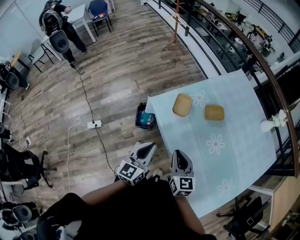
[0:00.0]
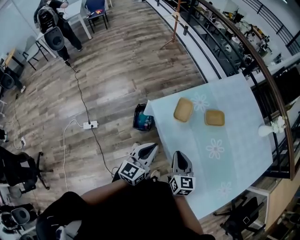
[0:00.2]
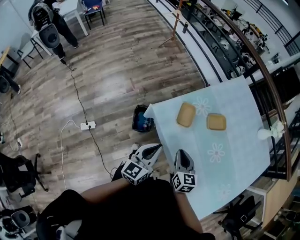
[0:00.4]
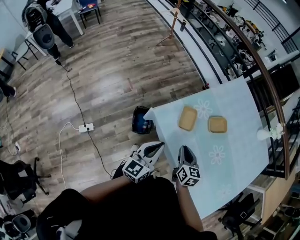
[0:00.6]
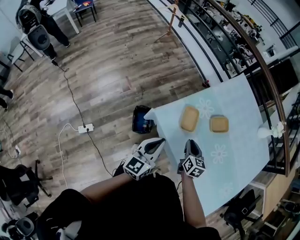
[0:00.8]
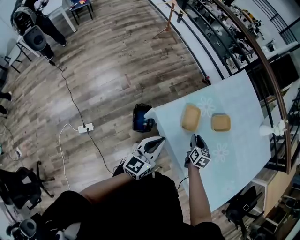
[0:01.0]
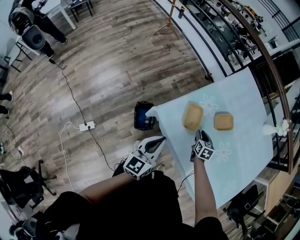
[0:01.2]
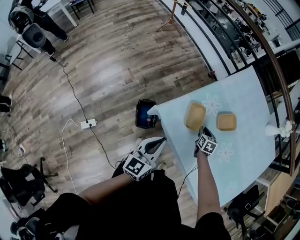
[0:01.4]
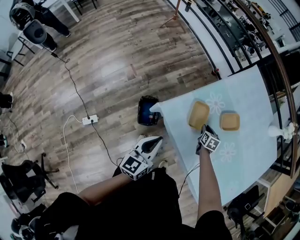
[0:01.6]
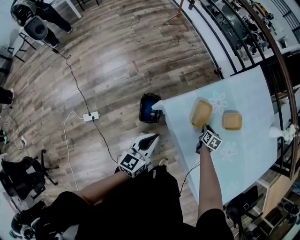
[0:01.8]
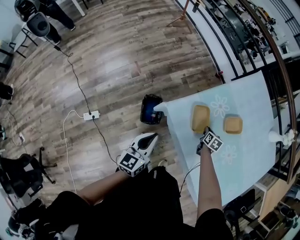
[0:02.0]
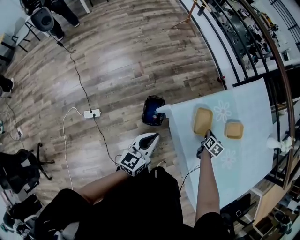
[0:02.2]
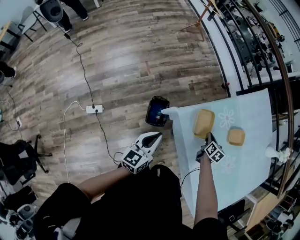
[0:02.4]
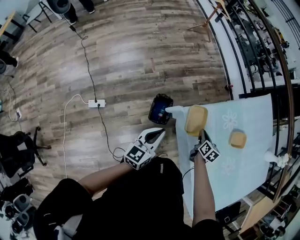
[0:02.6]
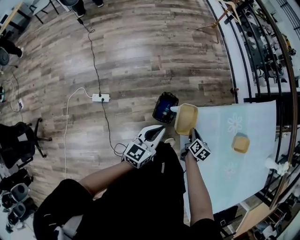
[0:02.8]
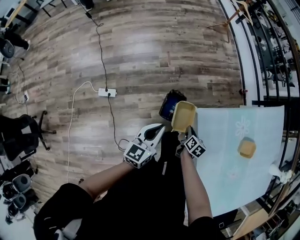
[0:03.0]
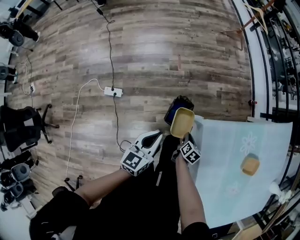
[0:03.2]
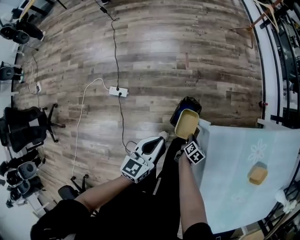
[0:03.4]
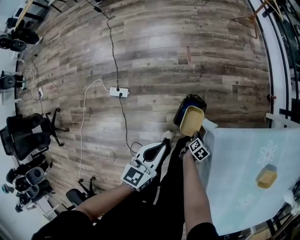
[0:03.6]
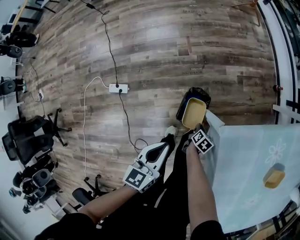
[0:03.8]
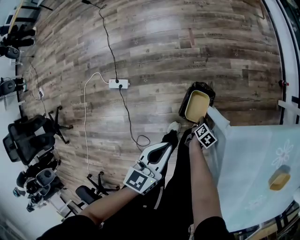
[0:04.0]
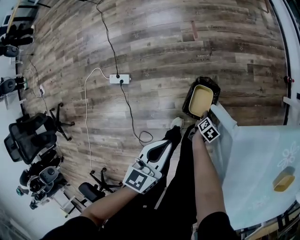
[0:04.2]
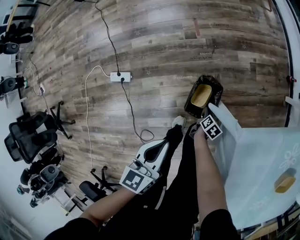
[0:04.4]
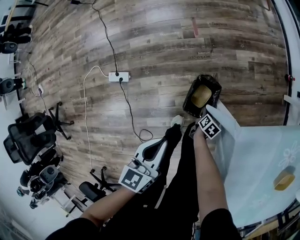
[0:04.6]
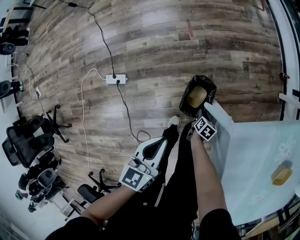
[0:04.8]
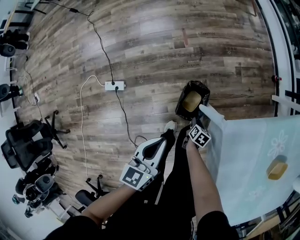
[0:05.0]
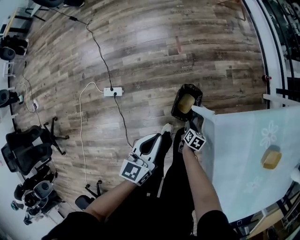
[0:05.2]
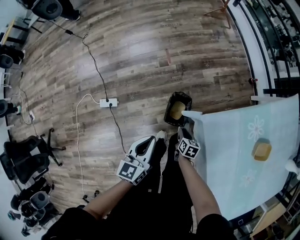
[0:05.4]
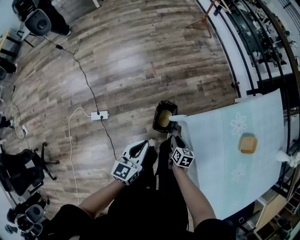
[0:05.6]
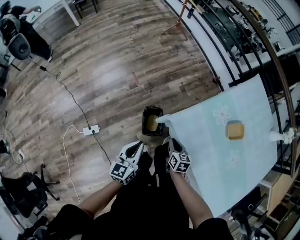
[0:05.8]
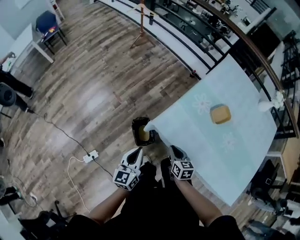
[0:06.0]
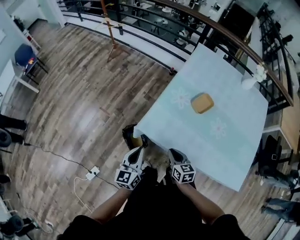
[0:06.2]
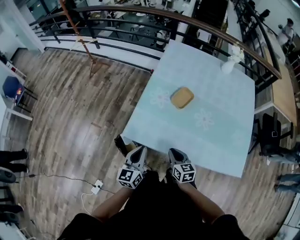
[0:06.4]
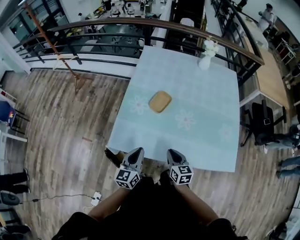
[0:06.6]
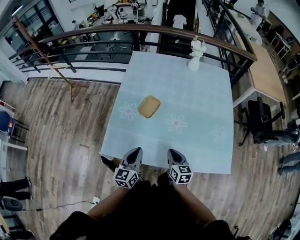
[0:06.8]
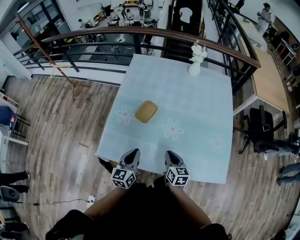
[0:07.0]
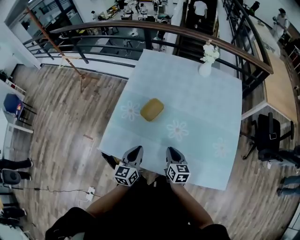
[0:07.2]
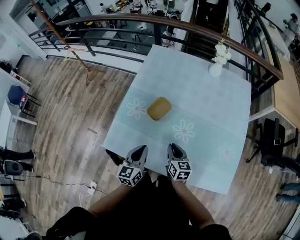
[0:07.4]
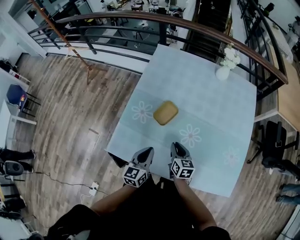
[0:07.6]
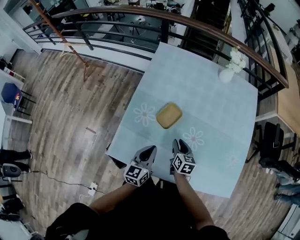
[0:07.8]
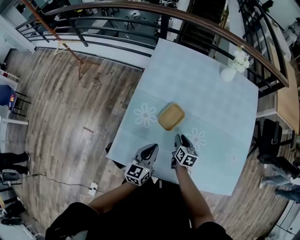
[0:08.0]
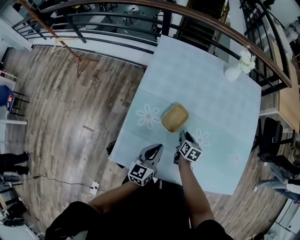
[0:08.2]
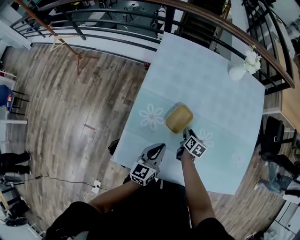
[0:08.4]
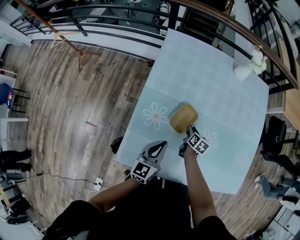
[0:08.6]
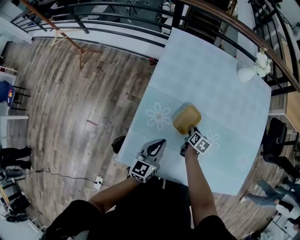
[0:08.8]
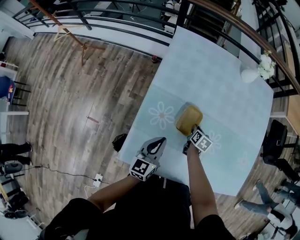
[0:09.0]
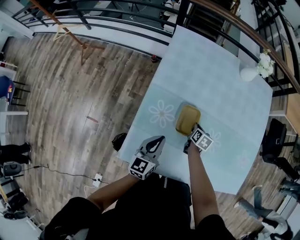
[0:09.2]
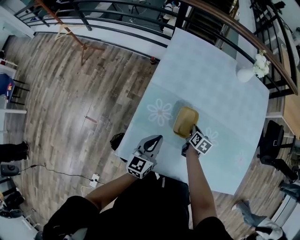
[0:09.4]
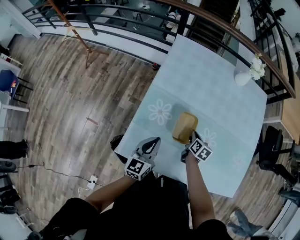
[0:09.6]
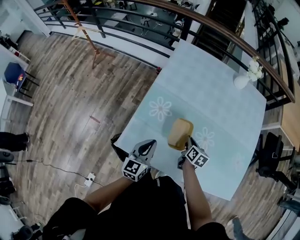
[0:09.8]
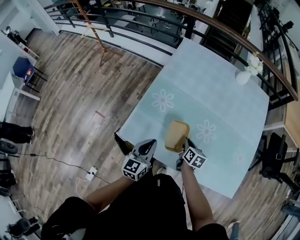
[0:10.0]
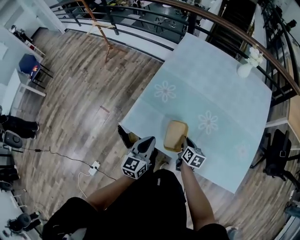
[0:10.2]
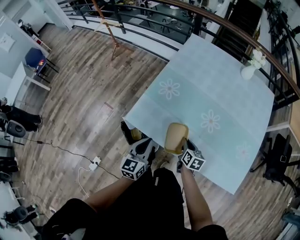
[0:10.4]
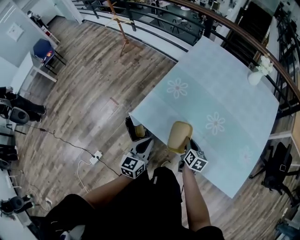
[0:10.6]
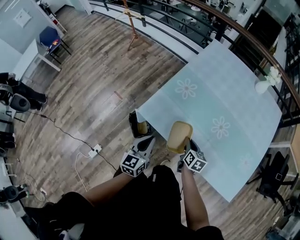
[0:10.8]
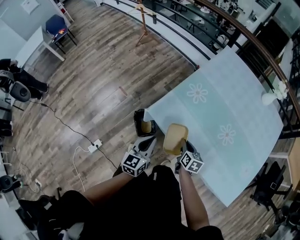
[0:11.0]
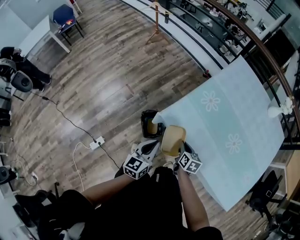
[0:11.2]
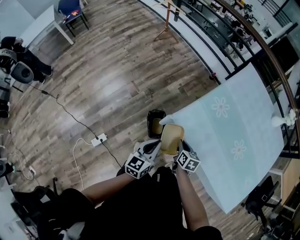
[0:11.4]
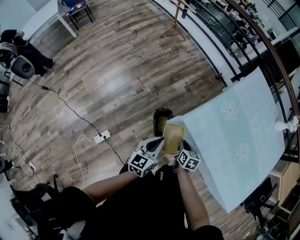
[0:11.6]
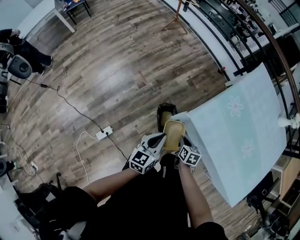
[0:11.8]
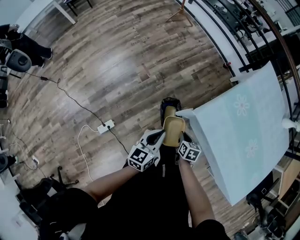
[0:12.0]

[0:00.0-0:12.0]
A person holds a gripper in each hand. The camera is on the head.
0:00.0 to 0:01.6: The left gripper is displaced to the left, forward and downward by some 20 cm; the right gripper is displaced forward and downward by about 40 cm, and angles its fingers downward, by roughly 40 degrees.
0:01.6 to 0:03.0: The right gripper ends up about 30 cm from where it was. Meanwhile the left gripper moves roughly 20 cm, and turns by roughly 20 degrees.
0:03.0 to 0:04.4: The right gripper goes approximately 35 cm downward. The left gripper moves downward, about 20 cm.
0:04.4 to 0:06.0: The left gripper moves upward, roughly 20 cm, and turns by approximately 30 degrees. The right gripper shifts some 50 cm upward, and swivels approximately 30 degrees.
0:06.0 to 0:07.6: The right gripper changes place by some 40 cm, and swivels some 30 degrees. The left gripper ends up roughly 40 cm from where it was, and turns by roughly 30 degrees.
0:07.6 to 0:09.0: The left gripper is displaced to the left and forward by roughly 15 cm. Meanwhile the right gripper moves forward and downward, some 20 cm, and swivels some 30 degrees.
0:09.0 to 0:10.4: The right gripper changes place by roughly 30 cm, and rotates approximately 30 degrees, while the left gripper shifts by some 25 cm, and rotates roughly 20 degrees.
0:10.4 to 0:12.0: Both grippers travel together to the left, some 40 cm. The right gripper changes its angle by some 30 degrees.

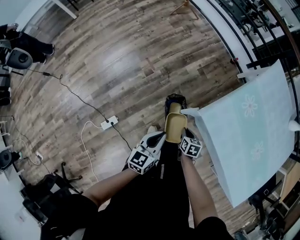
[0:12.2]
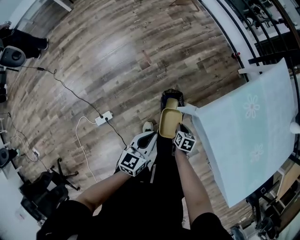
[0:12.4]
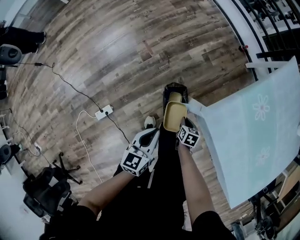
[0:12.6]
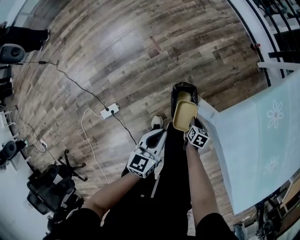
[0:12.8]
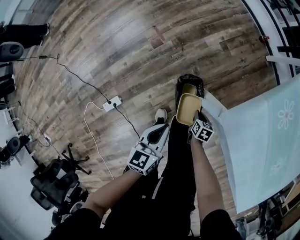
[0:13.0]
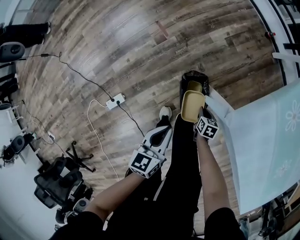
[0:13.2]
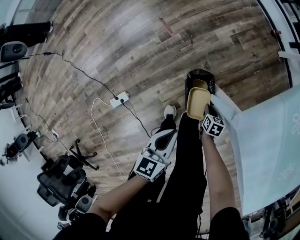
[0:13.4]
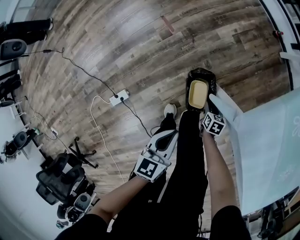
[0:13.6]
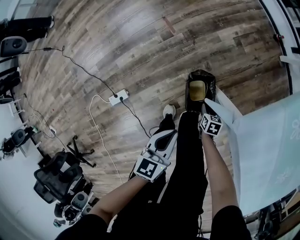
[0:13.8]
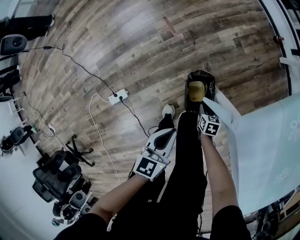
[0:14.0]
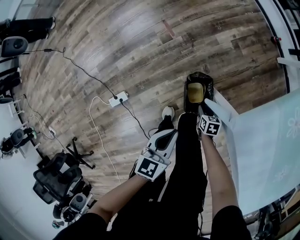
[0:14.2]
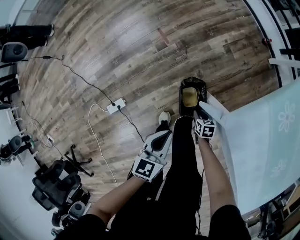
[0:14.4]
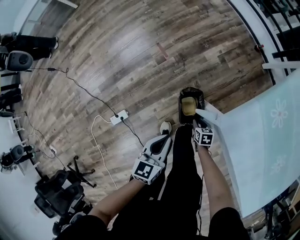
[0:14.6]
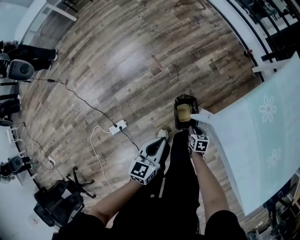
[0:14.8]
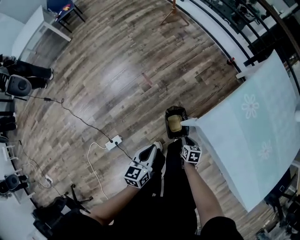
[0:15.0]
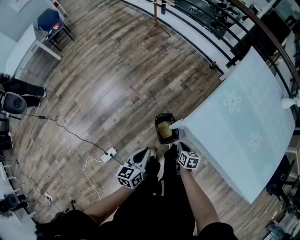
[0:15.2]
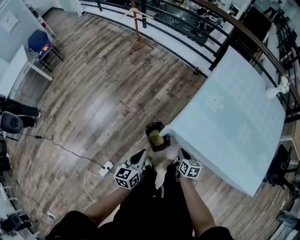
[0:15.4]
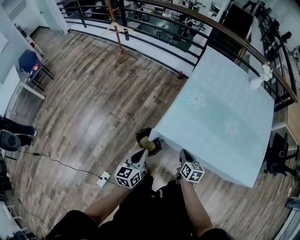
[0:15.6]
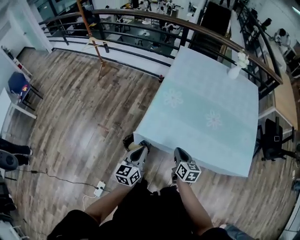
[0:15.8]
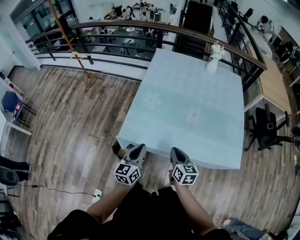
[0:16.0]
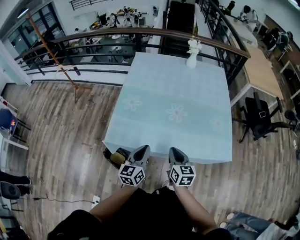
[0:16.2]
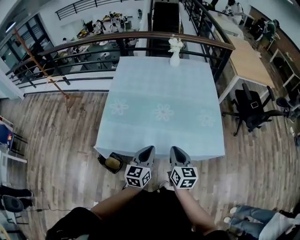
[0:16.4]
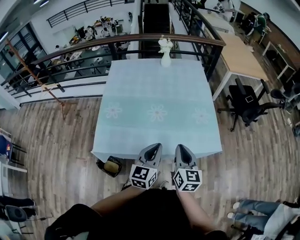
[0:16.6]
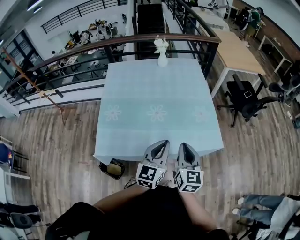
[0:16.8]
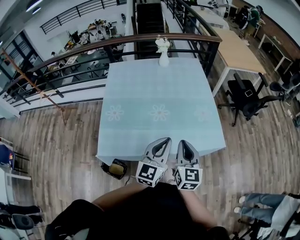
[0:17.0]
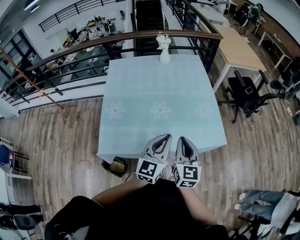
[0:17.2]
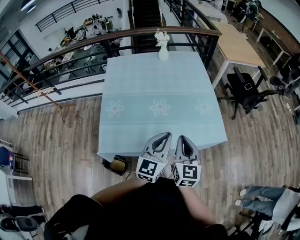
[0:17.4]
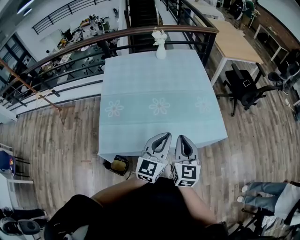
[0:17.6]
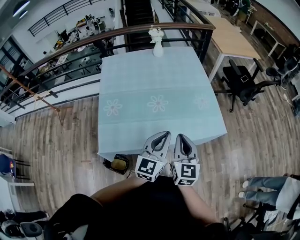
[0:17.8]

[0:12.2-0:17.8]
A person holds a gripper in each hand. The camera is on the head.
0:12.2 to 0:13.6: The two grippers go some 25 cm downward.
0:13.6 to 0:15.0: Both grippers travel together upward, roughly 15 cm.
0:15.0 to 0:16.4: Both grippers are carried about 50 cm. The right gripper points its fingers about 40 degrees further upward, while the left gripper turns by about 50 degrees.
0:16.4 to 0:17.8: Both grippers travel together upward, about 10 cm. The right gripper changes its angle by about 20 degrees. Meanwhile the left gripper turns by roughly 20 degrees.

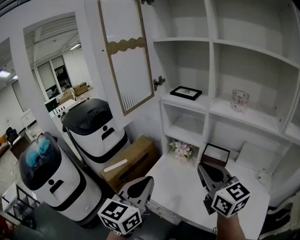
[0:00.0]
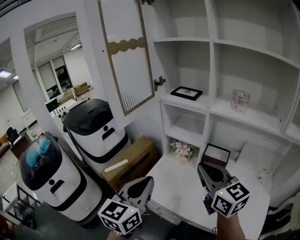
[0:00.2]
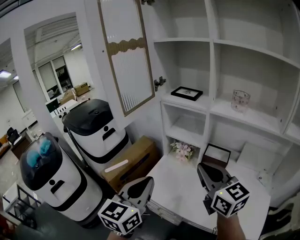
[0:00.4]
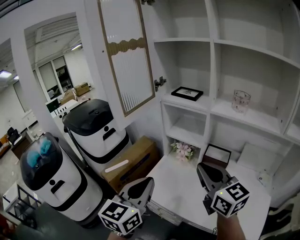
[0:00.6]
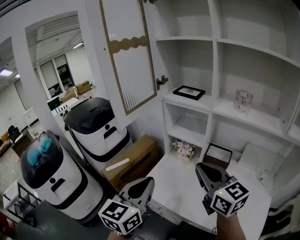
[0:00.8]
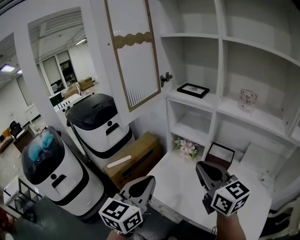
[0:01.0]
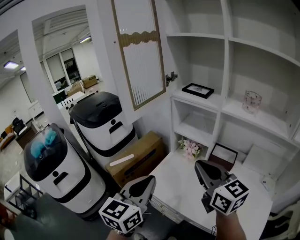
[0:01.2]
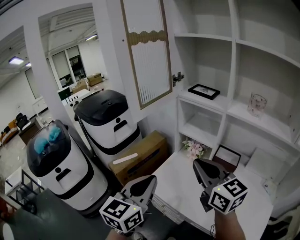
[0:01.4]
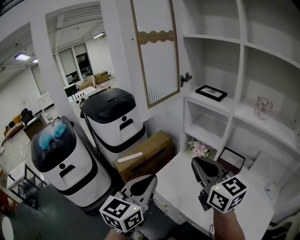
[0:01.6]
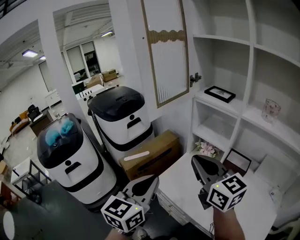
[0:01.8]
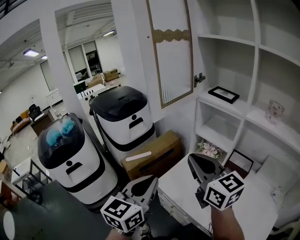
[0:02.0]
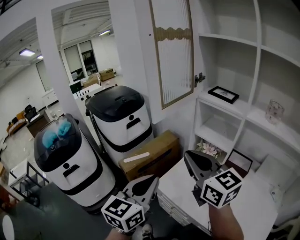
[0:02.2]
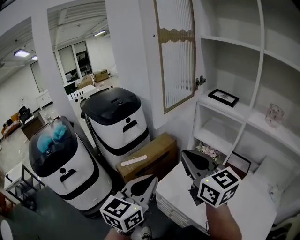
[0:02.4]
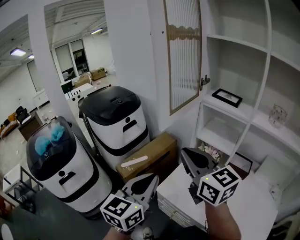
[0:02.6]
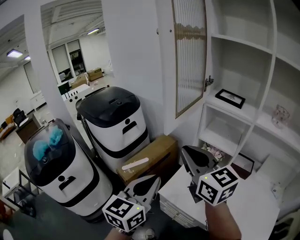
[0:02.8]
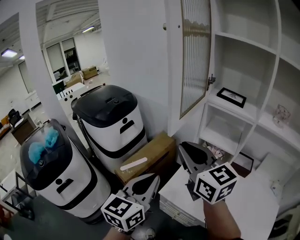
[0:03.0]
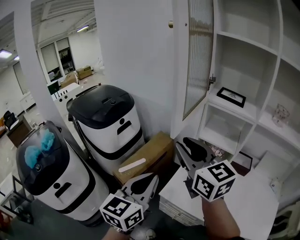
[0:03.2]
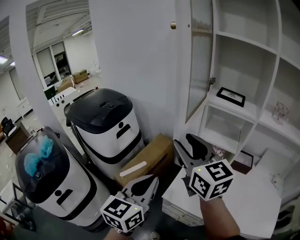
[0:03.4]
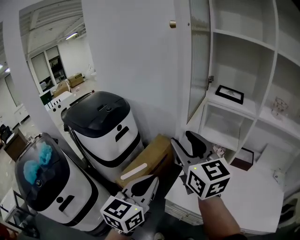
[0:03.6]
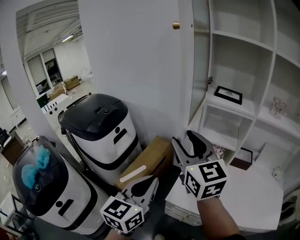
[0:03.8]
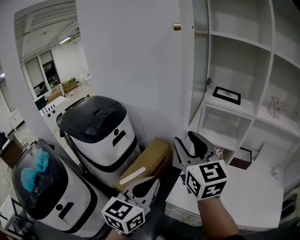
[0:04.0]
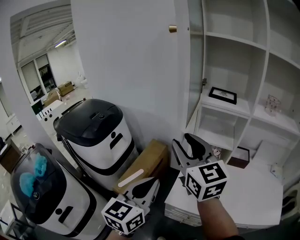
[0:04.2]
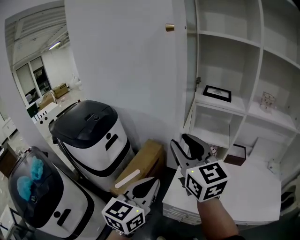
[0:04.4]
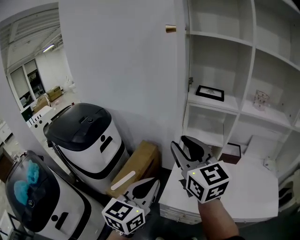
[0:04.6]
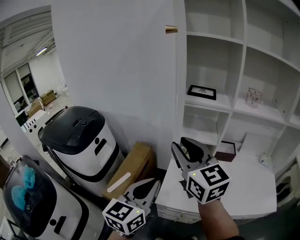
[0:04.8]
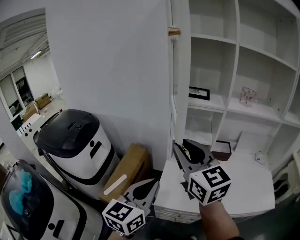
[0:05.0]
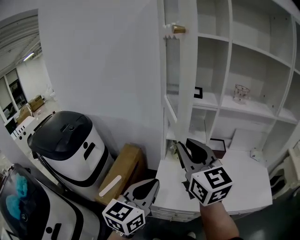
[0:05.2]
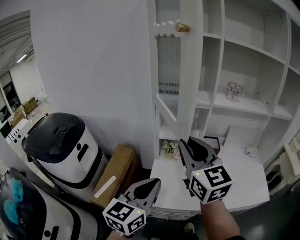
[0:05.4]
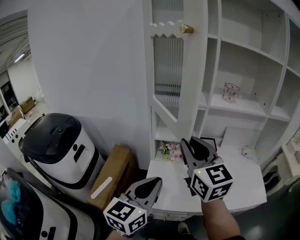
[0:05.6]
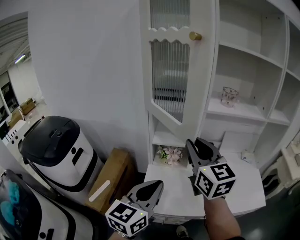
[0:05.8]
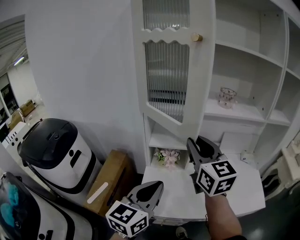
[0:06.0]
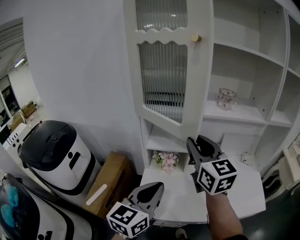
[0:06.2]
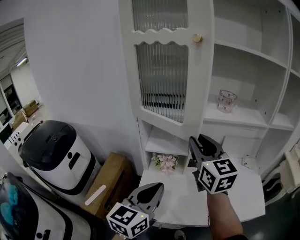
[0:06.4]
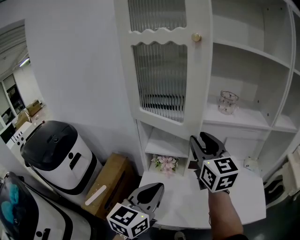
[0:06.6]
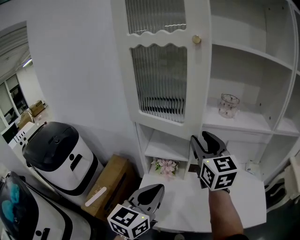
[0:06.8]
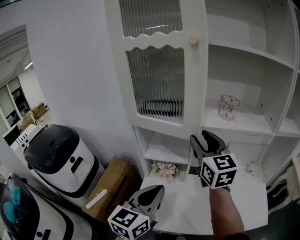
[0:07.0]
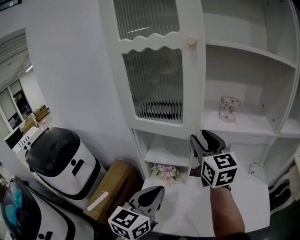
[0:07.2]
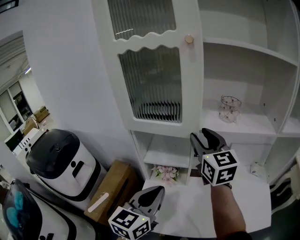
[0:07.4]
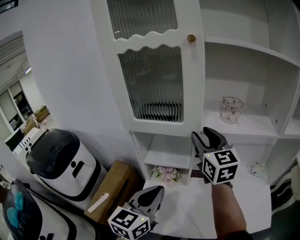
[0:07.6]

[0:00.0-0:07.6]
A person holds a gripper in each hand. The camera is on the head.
0:00.0 to 0:01.6: The right gripper heads to the left, covering some 10 cm.
0:01.6 to 0:03.0: Both grippers move to the left and forward, about 20 cm.
0:03.0 to 0:04.6: The right gripper changes its angle by about 20 degrees, and opens up.
0:04.6 to 0:06.0: The two grippers go some 15 cm to the right. The right gripper changes its angle by roughly 20 degrees.
0:06.0 to 0:07.6: Both grippers travel together forward and to the right, about 15 cm. The right gripper opens up.
